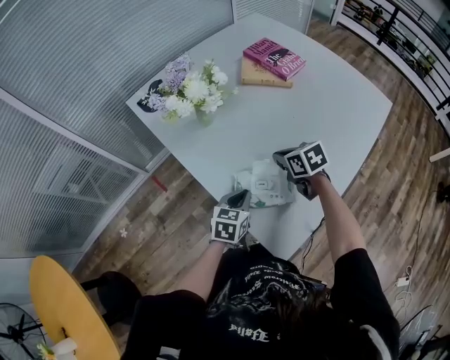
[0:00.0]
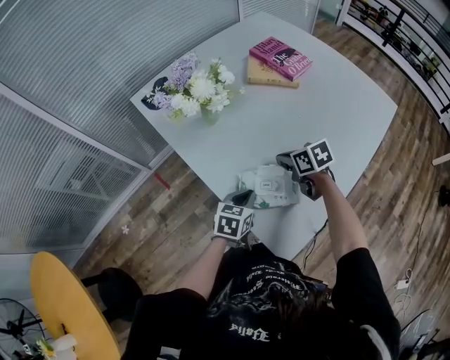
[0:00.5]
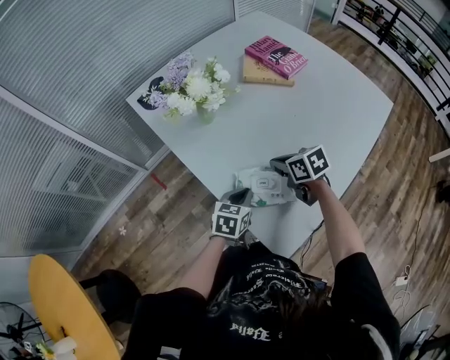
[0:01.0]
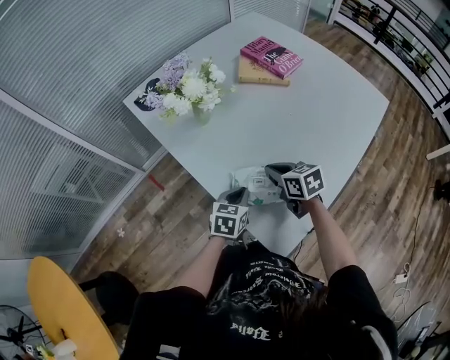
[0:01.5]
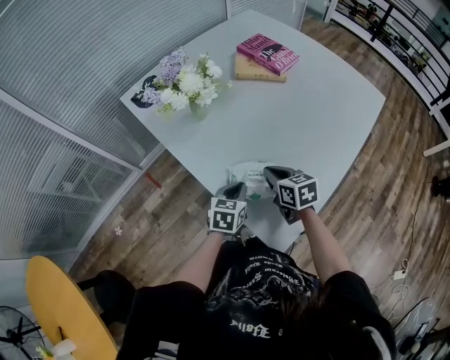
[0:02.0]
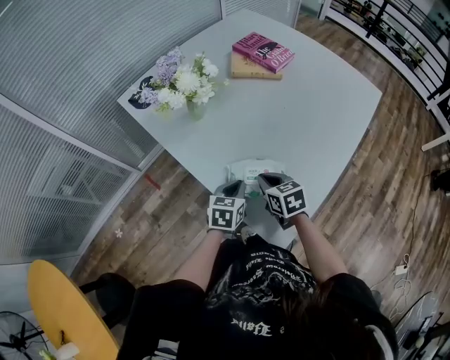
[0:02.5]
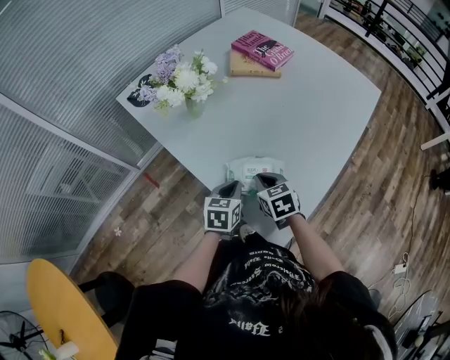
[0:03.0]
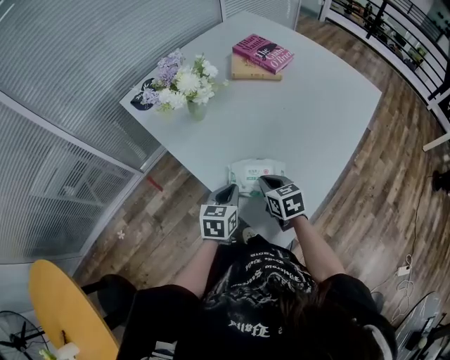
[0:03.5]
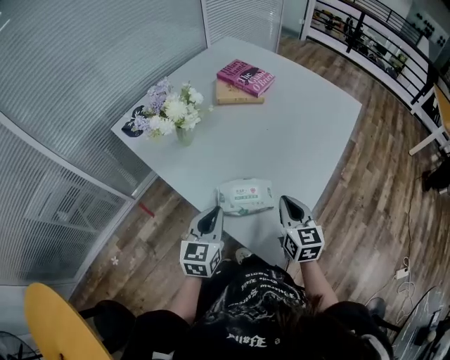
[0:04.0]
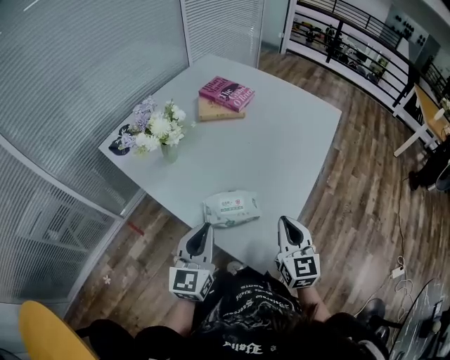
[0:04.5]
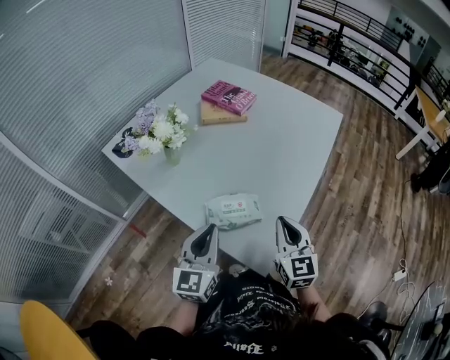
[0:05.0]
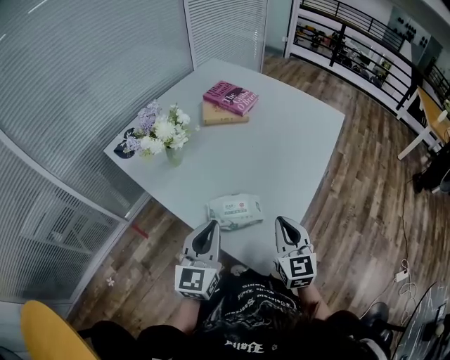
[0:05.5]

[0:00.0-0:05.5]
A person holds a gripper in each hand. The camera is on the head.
0:00.0 to 0:02.0: The right gripper travels backward by roughly 5 cm.
0:02.0 to 0:03.5: The grippers stay close to where they were, moving slightly.
0:03.5 to 0:05.5: The right gripper travels upward, to the right and backward by approximately 20 cm, and rotates roughly 40 degrees, while the left gripper travels upward by about 15 cm, and points its fingers approximately 30 degrees further upward.

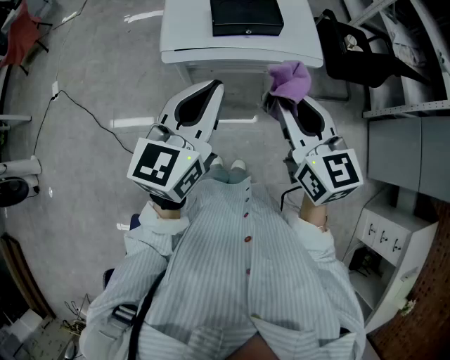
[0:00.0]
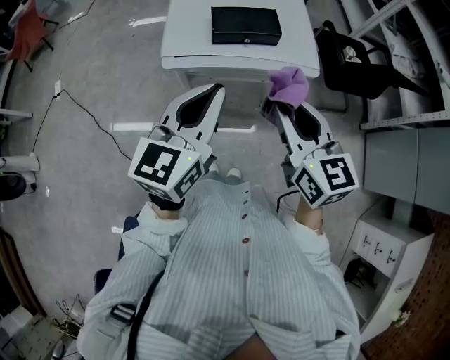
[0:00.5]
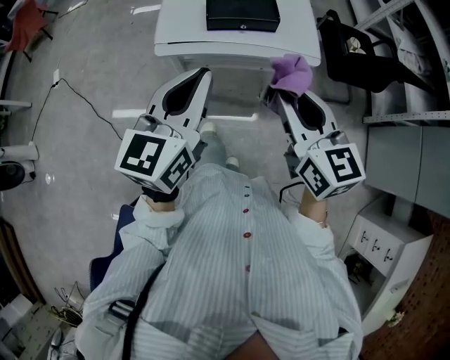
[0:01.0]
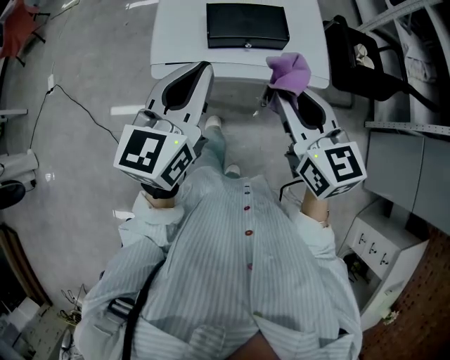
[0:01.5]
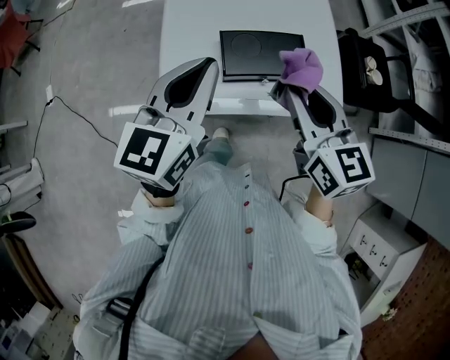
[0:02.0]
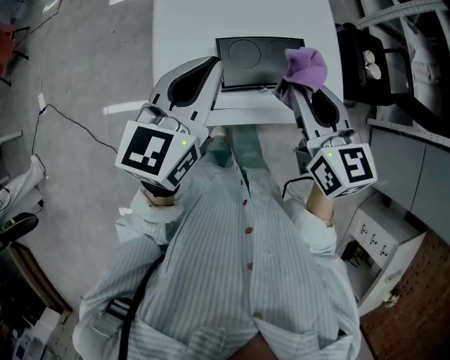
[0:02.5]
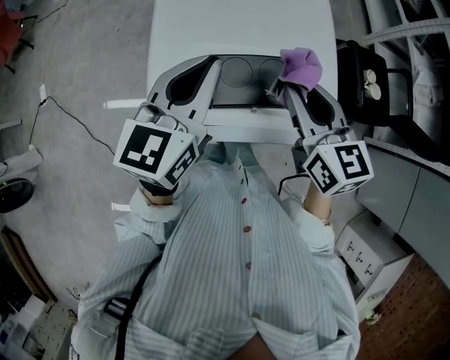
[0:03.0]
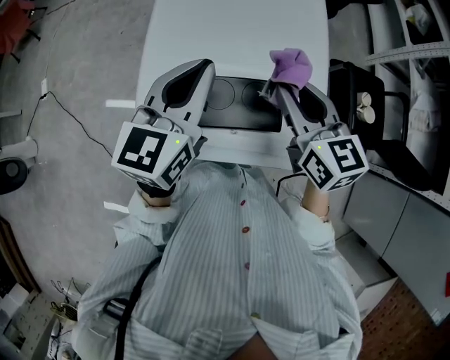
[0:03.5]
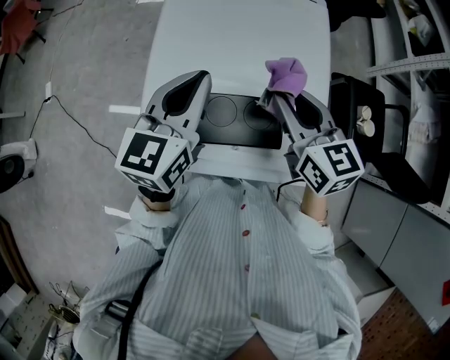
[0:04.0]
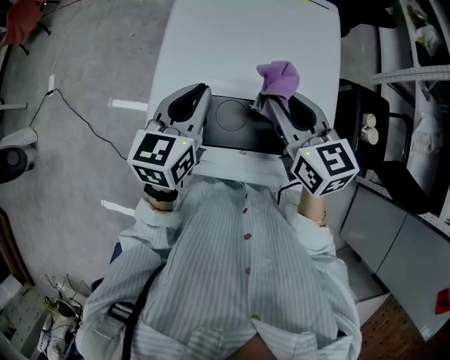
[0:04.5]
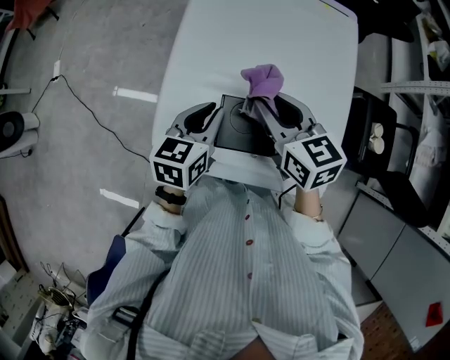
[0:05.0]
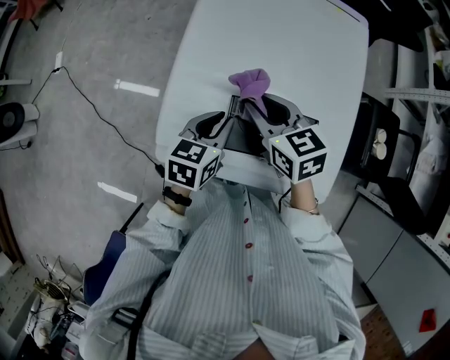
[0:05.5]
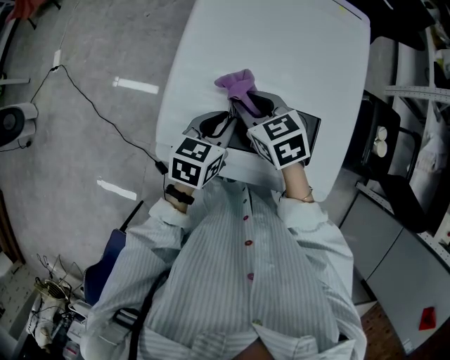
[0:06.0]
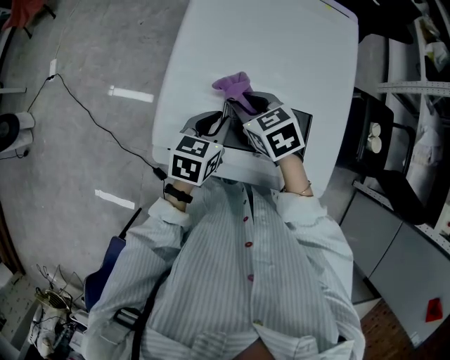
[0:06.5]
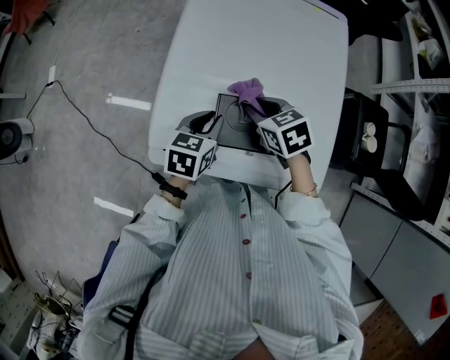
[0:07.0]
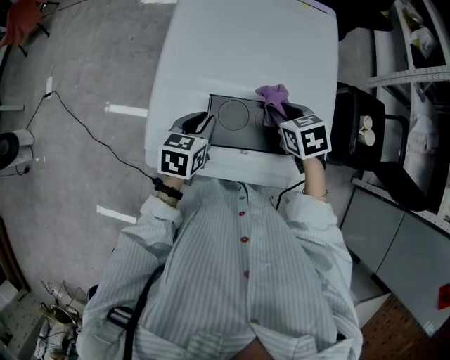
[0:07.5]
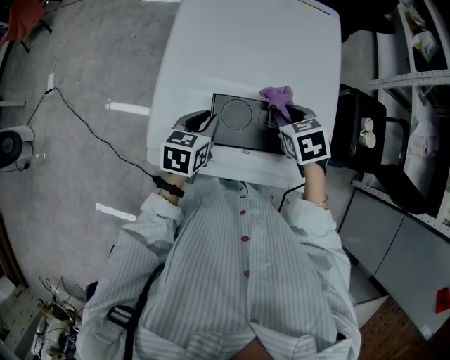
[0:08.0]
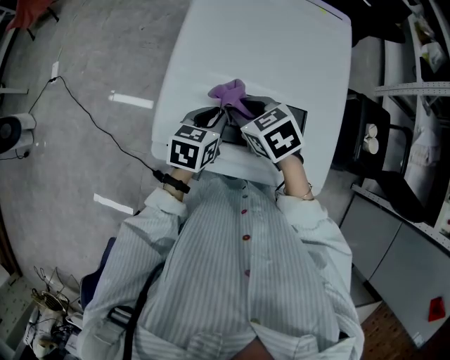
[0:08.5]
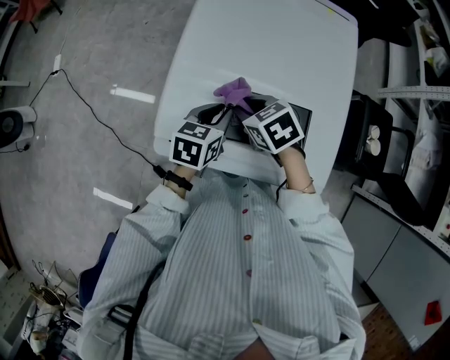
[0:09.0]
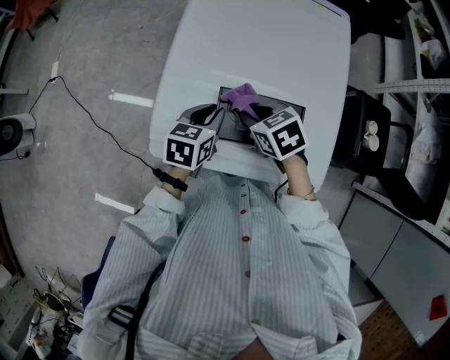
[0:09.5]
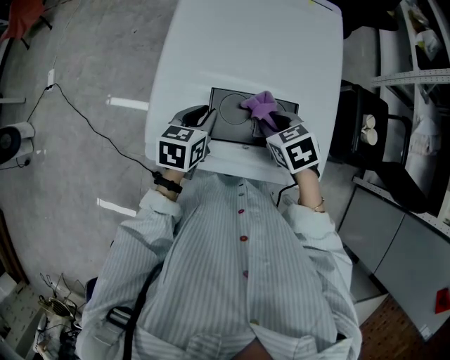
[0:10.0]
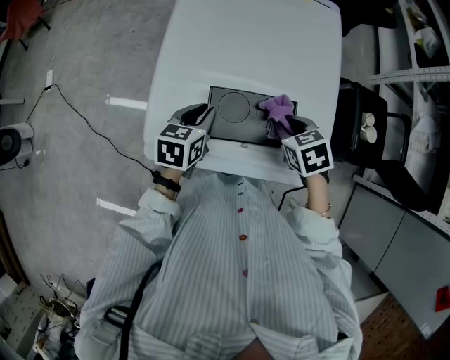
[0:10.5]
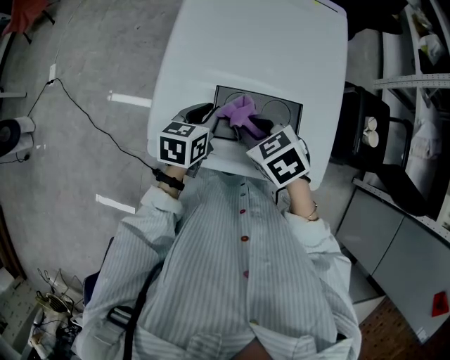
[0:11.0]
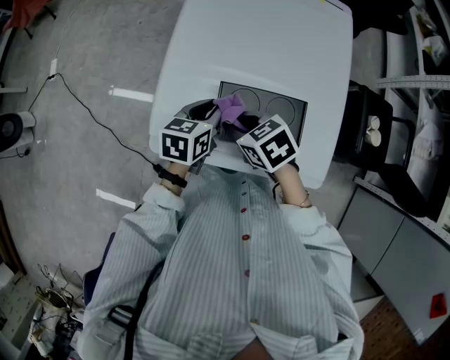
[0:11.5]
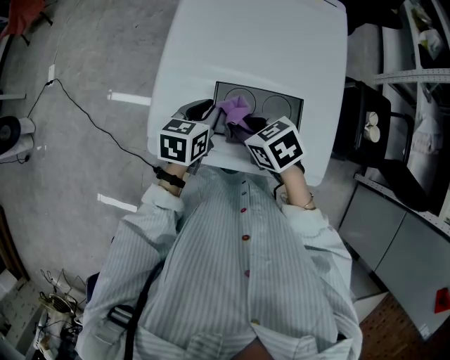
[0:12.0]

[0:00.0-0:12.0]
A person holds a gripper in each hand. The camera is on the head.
0:00.0 to 0:02.0: The grippers both shift forward by some 25 cm.
0:02.0 to 0:04.0: The grippers both shift forward by roughly 20 cm.
0:04.0 to 0:06.0: The left gripper is displaced downward by roughly 20 cm, and swivels approximately 30 degrees. The right gripper heads to the left and downward, covering roughly 25 cm, and turns by about 30 degrees.
0:06.0 to 0:08.0: The right gripper goes roughly 15 cm to the right, and rotates some 20 degrees.
0:08.0 to 0:10.0: The right gripper travels to the left and back again, some 15 cm each way.
0:10.0 to 0:12.0: The right gripper goes roughly 10 cm to the left.

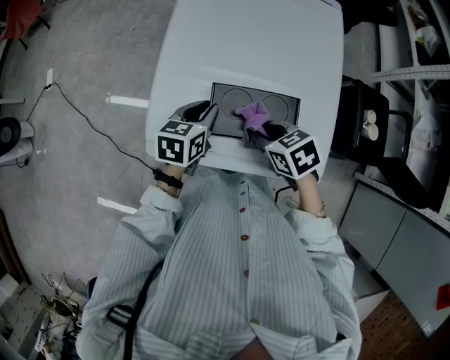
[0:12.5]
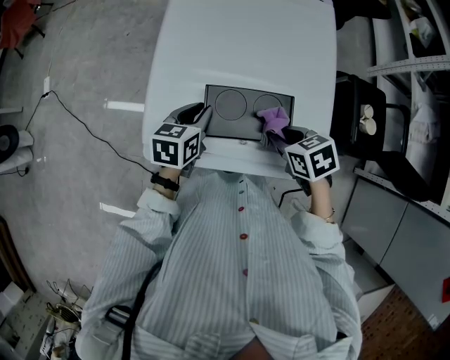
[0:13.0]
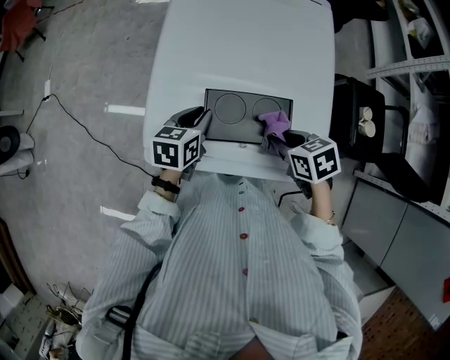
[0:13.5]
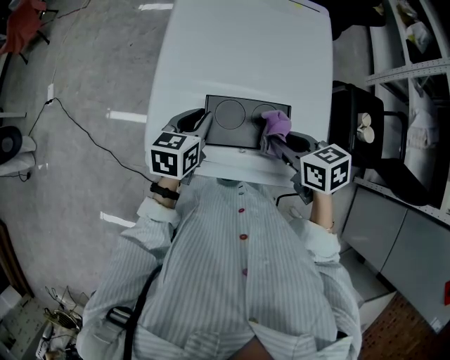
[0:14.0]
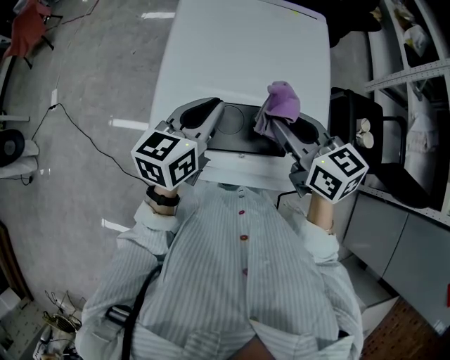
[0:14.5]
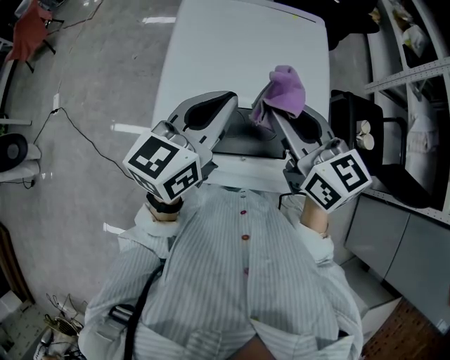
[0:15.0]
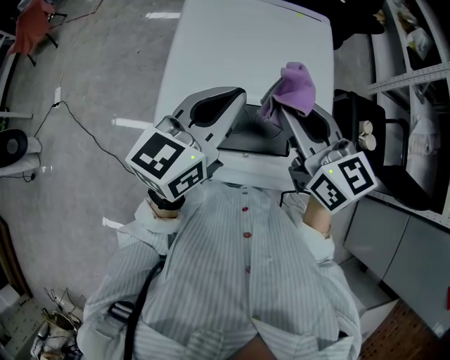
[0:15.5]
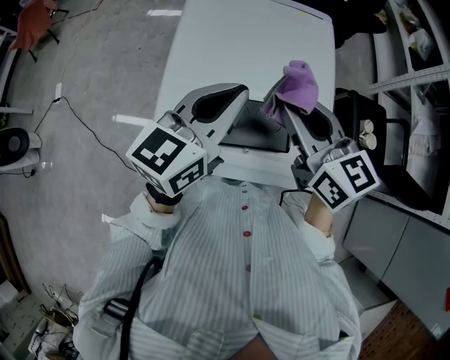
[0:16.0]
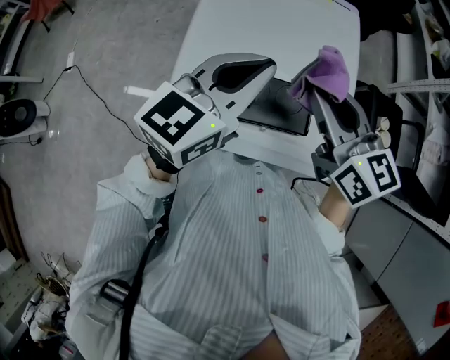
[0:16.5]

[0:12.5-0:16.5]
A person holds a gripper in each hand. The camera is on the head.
0:12.5 to 0:14.5: Both grippers travel together upward, some 15 cm. The left gripper changes its angle by approximately 20 degrees. The right gripper tilts its fingers some 30 degrees upward.
0:14.5 to 0:16.5: The grippers both shift upward by some 10 cm.

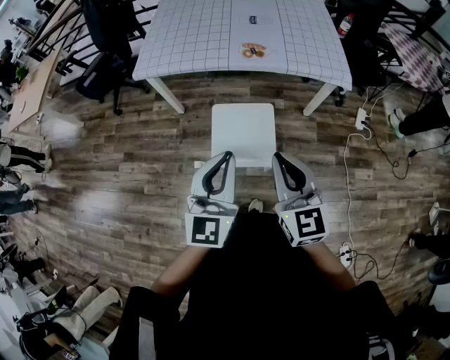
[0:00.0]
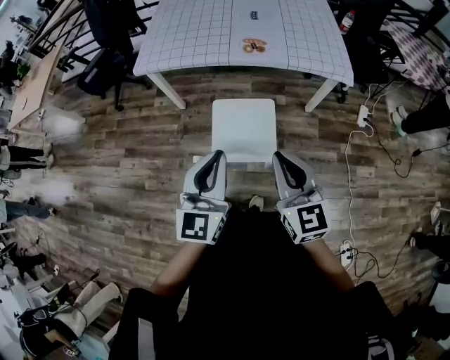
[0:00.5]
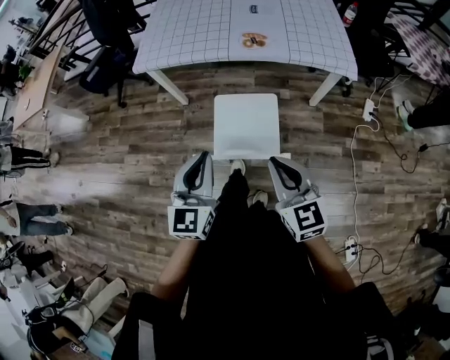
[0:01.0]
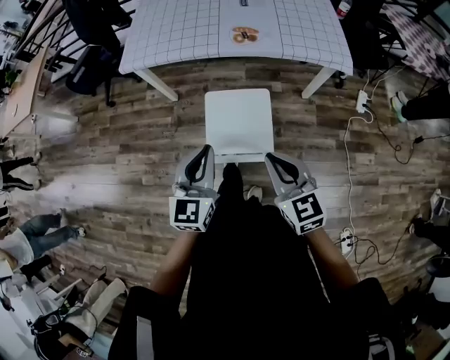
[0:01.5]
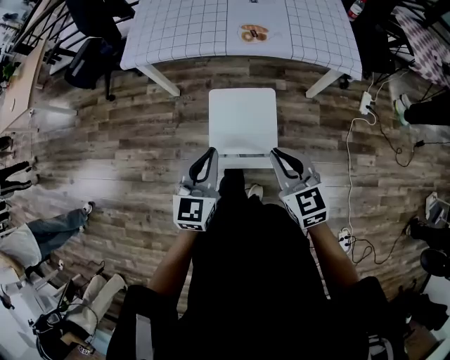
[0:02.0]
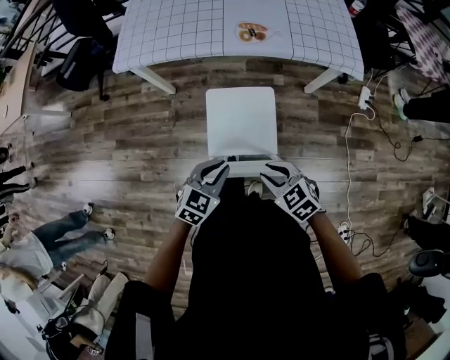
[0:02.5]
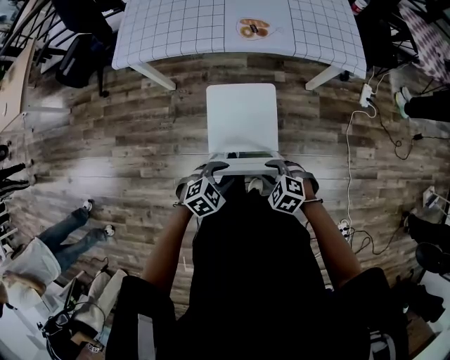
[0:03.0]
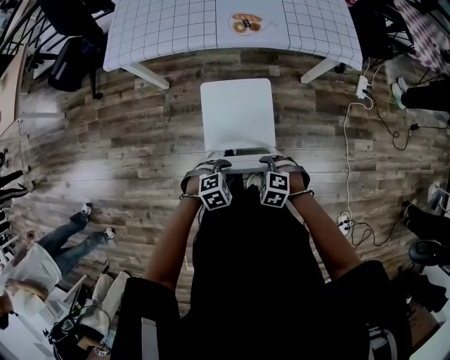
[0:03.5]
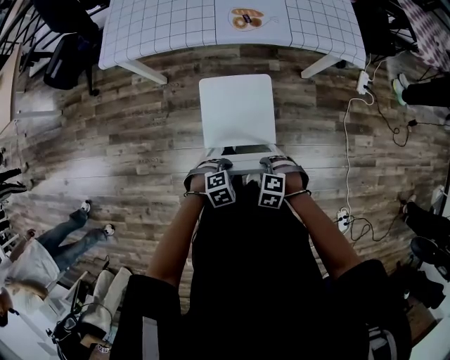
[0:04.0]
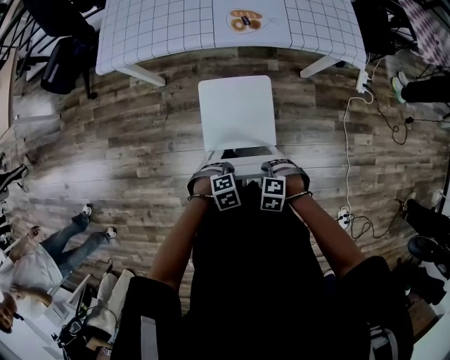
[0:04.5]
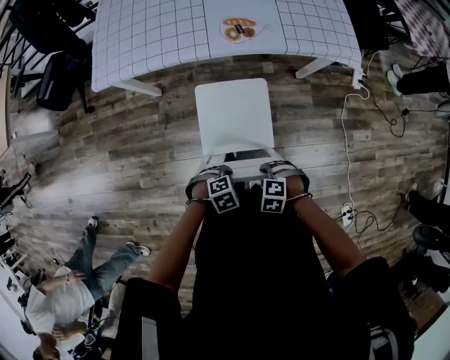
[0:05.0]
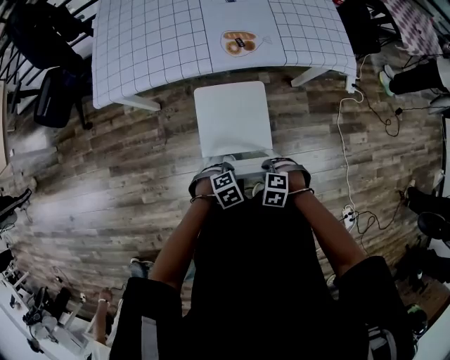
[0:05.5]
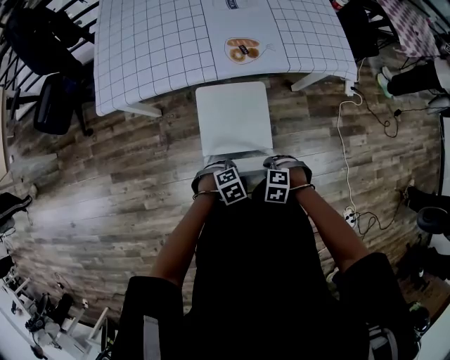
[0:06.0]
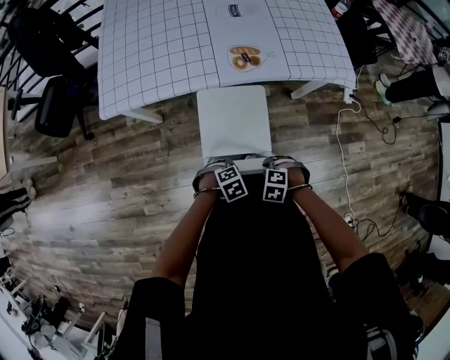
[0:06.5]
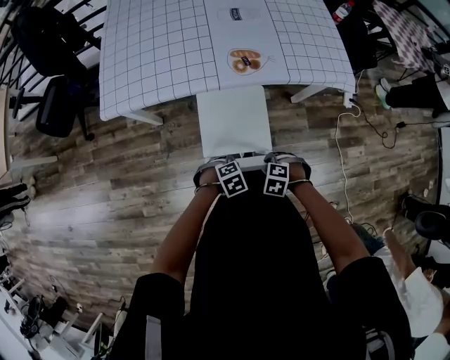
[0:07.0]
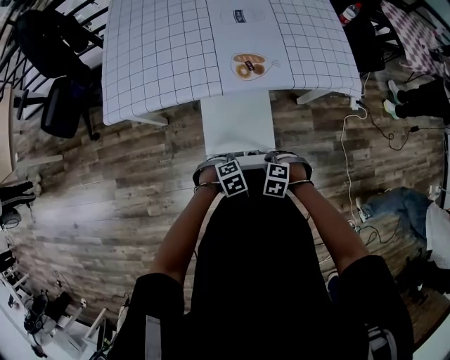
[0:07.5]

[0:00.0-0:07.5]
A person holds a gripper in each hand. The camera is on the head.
0:00.0 to 0:02.0: Both grippers move downward and forward, about 15 cm.
0:02.0 to 0:04.0: The grippers both shift downward by some 25 cm. The left gripper points its fingers roughly 50 degrees further downward. Meanwhile the right gripper tilts its fingers some 50 degrees downward, and opens its fingers.
0:04.0 to 0:05.5: The left gripper changes place by roughly 10 cm, while the right gripper ends up about 10 cm from where it was.
0:05.5 to 0:07.5: The left gripper moves approximately 10 cm. The right gripper changes place by about 10 cm.
